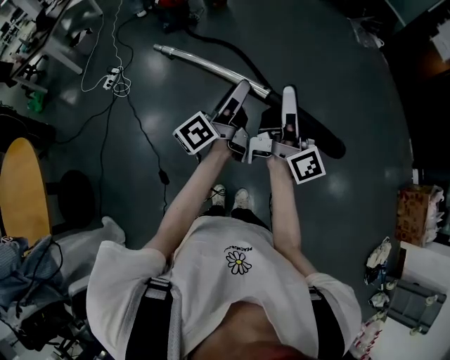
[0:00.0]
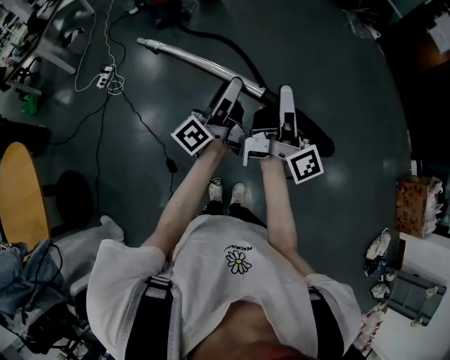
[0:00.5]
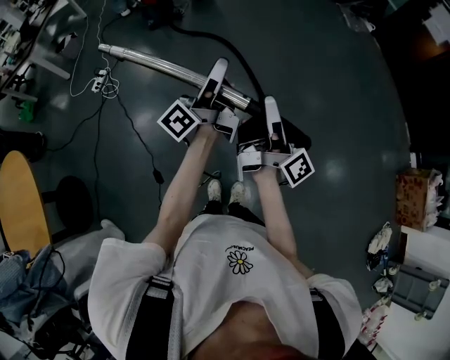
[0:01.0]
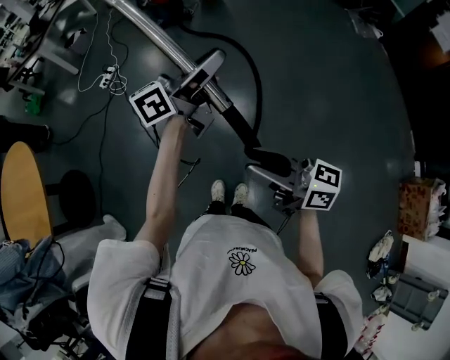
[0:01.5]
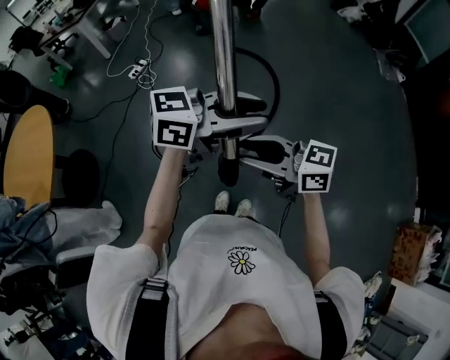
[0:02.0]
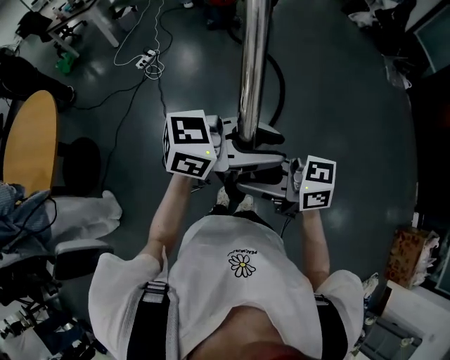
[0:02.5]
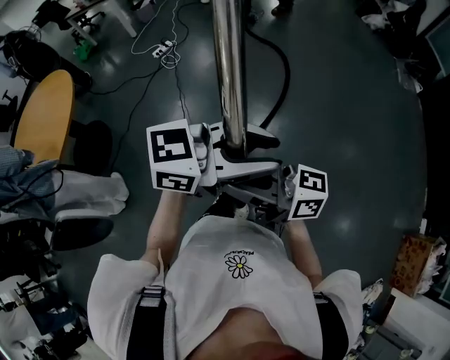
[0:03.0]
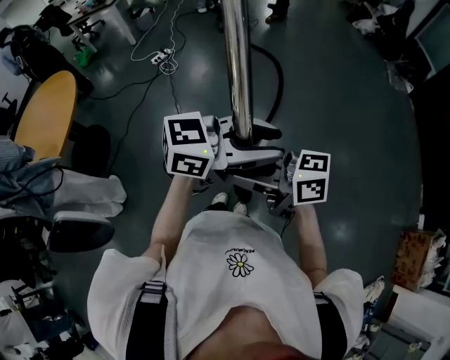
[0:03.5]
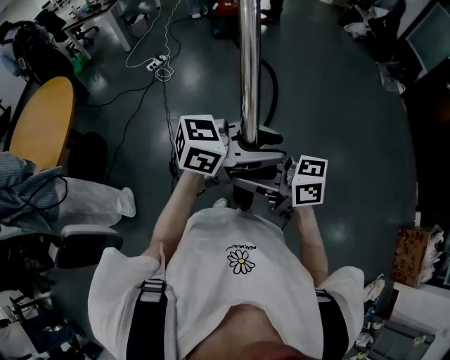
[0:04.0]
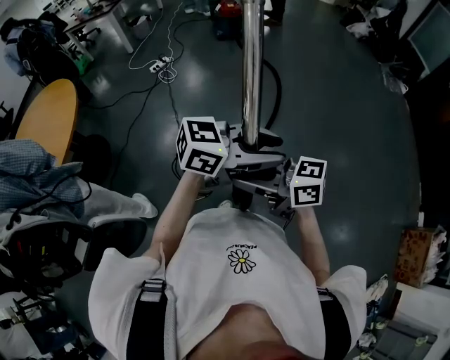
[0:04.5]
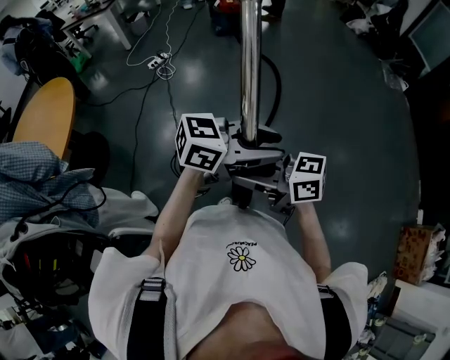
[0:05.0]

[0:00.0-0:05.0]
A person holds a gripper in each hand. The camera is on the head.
0:00.0 to 0:02.5: The right gripper moves about 30 cm, and rotates some 90 degrees. The left gripper moves some 20 cm, rotates approximately 70 degrees, and closes up.
0:02.5 to 0:05.0: The left gripper changes place by some 15 cm, while the right gripper shifts by about 15 cm.

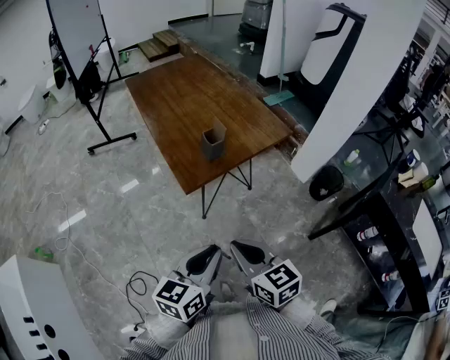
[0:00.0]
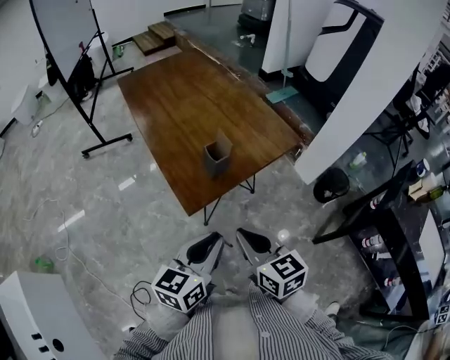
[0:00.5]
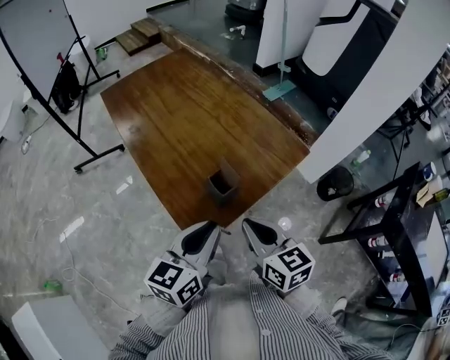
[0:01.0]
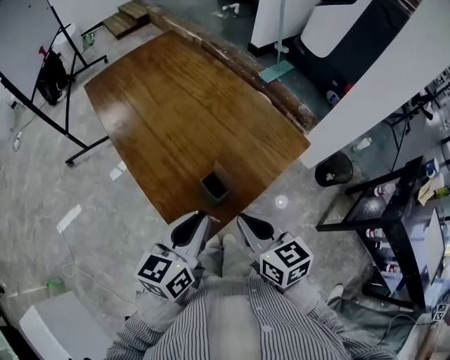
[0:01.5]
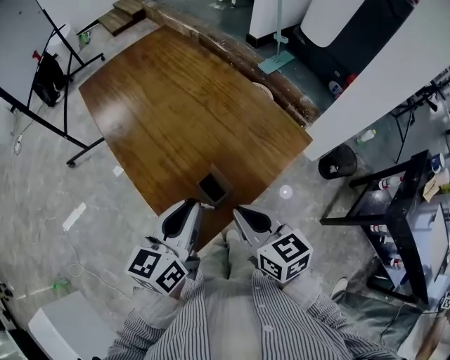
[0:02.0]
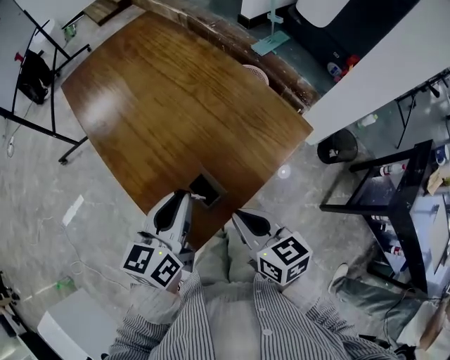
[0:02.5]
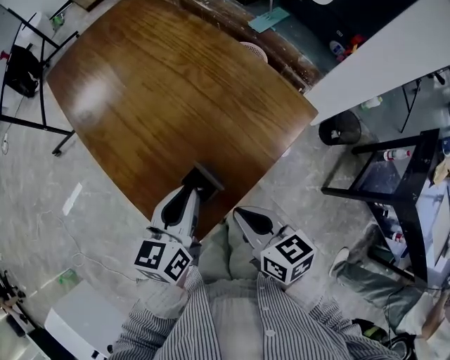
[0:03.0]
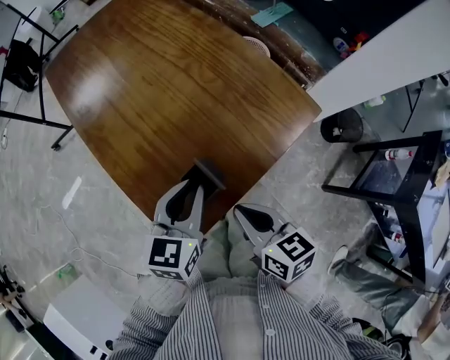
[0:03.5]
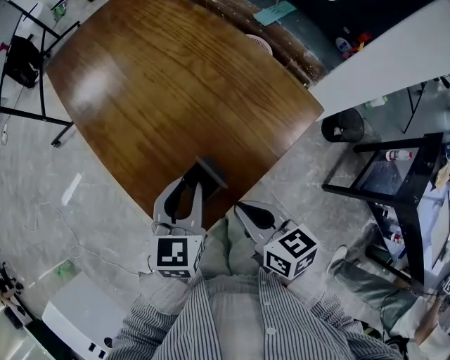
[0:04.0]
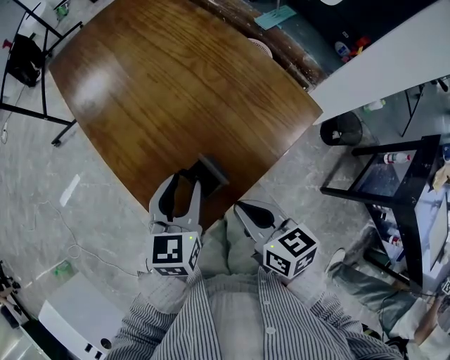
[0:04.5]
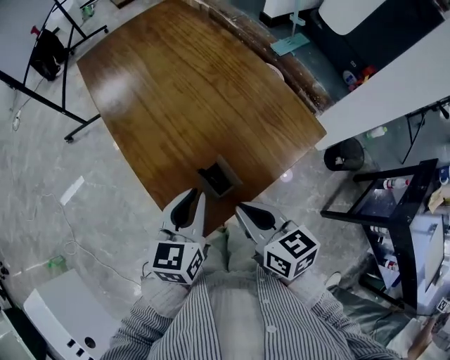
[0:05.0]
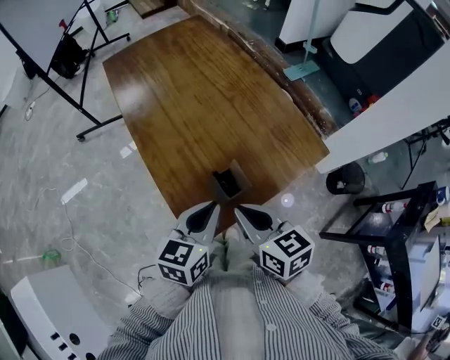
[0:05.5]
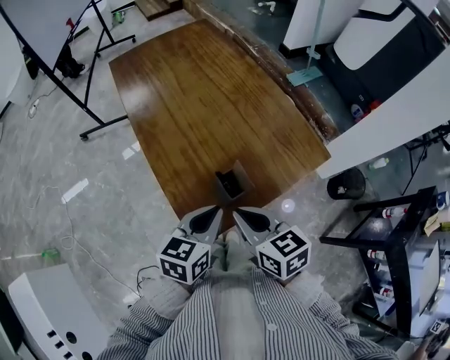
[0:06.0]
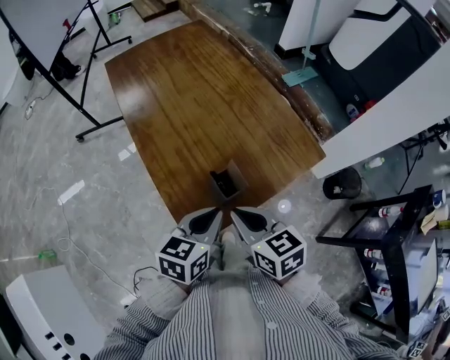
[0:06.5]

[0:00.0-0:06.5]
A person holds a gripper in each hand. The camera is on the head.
0:00.0 to 0:02.0: Both grippers travel together forward, about 40 cm.
0:02.0 to 0:04.5: The two grippers go approximately 10 cm downward. The left gripper swivels roughly 20 degrees, and opens.
0:04.5 to 0:06.5: The right gripper is displaced upward and to the left by about 10 cm. The left gripper heads backward, covering approximately 10 cm, and closes up.

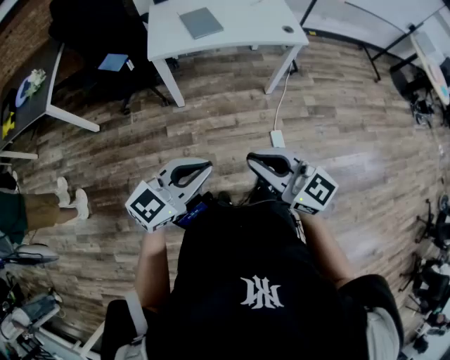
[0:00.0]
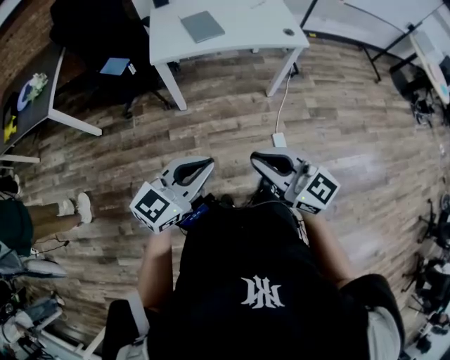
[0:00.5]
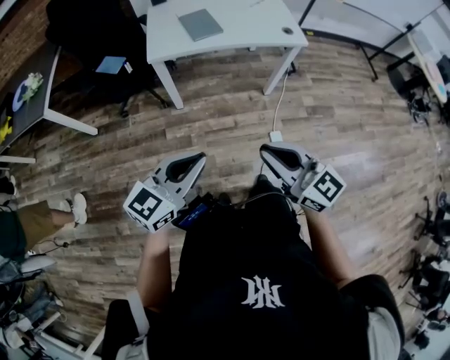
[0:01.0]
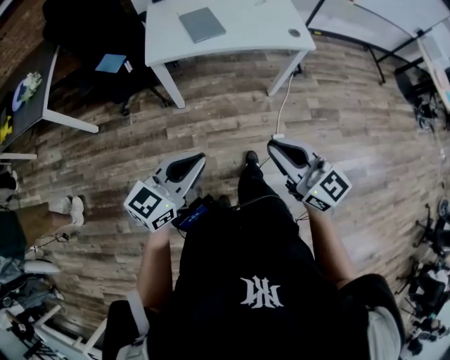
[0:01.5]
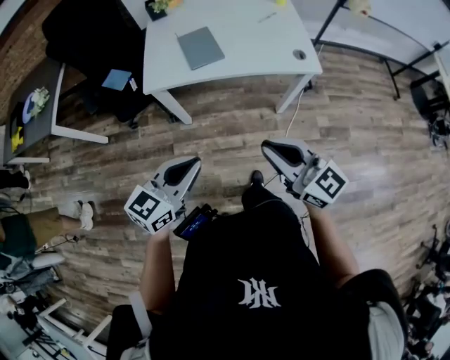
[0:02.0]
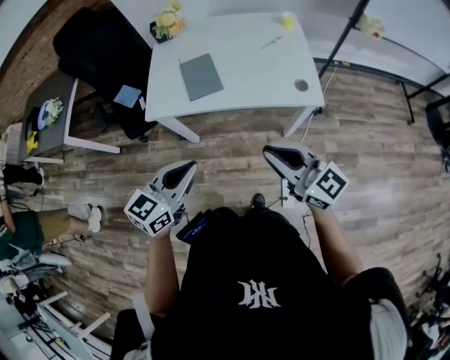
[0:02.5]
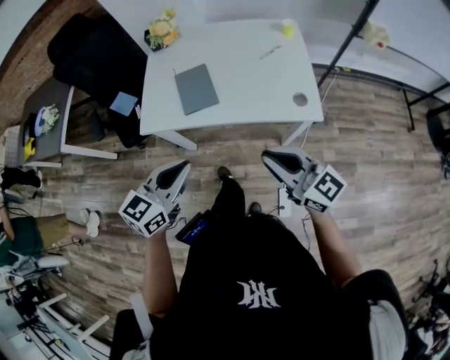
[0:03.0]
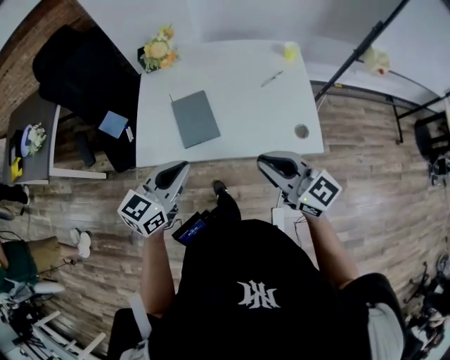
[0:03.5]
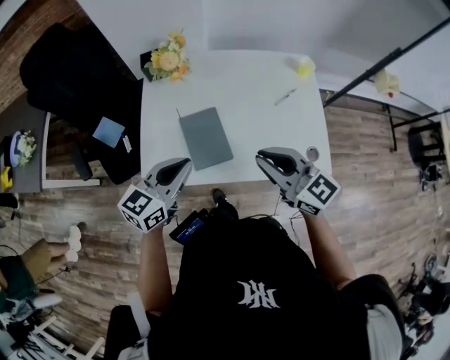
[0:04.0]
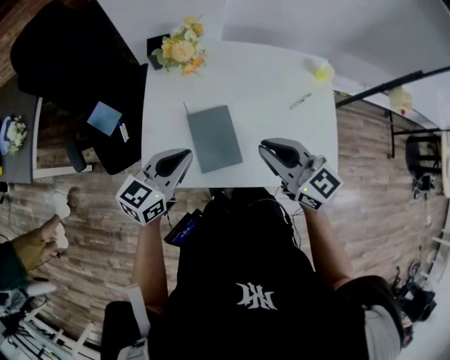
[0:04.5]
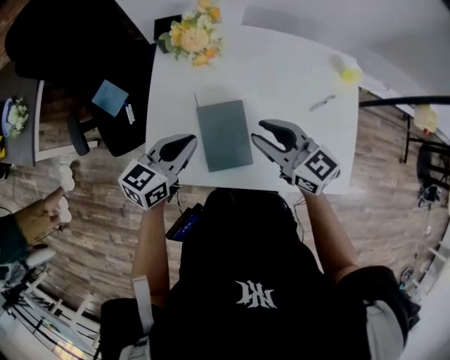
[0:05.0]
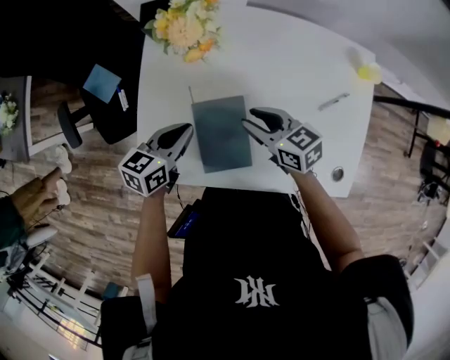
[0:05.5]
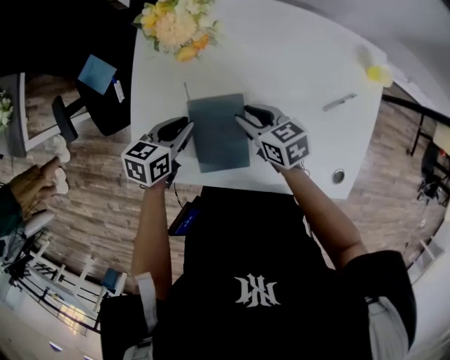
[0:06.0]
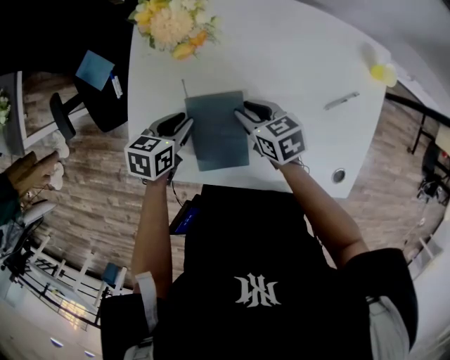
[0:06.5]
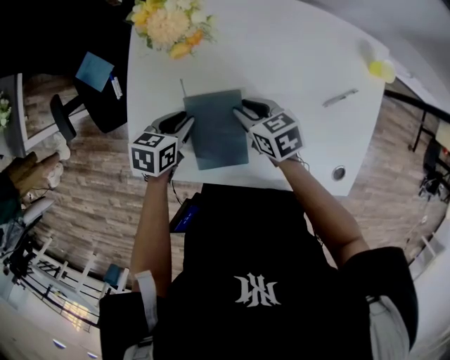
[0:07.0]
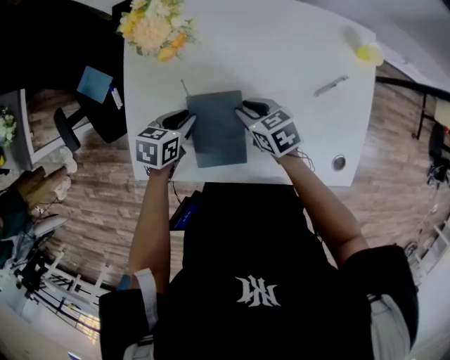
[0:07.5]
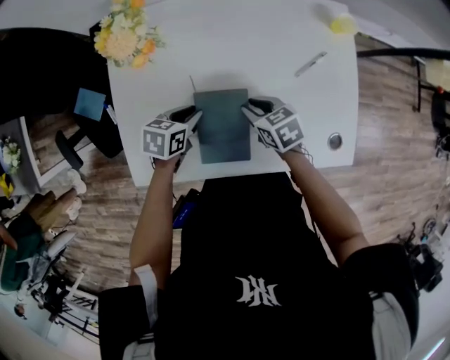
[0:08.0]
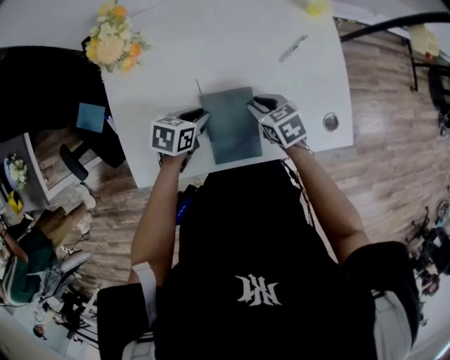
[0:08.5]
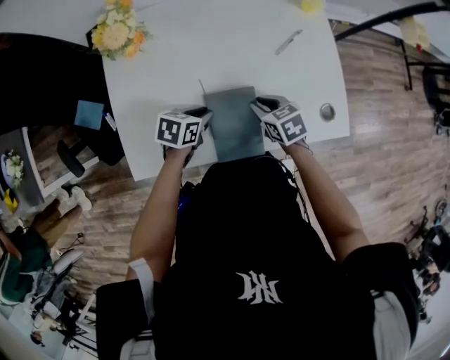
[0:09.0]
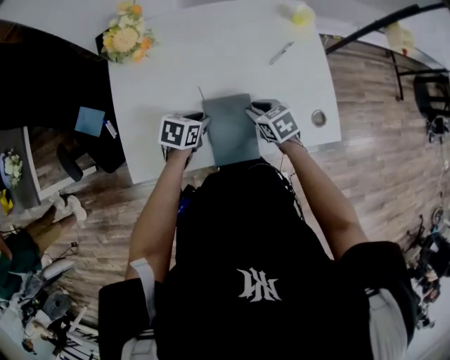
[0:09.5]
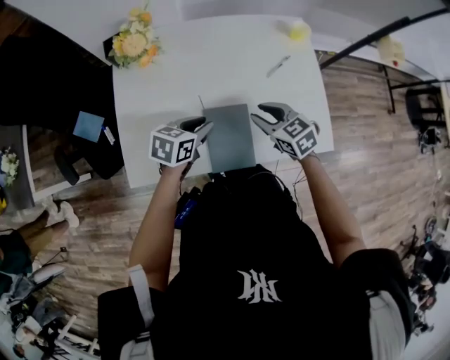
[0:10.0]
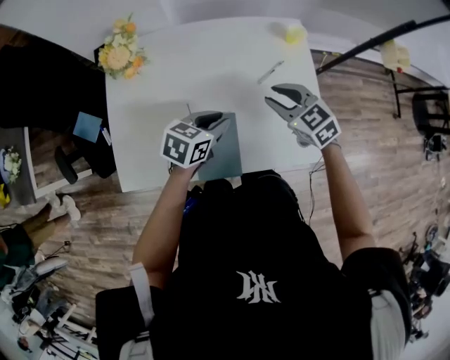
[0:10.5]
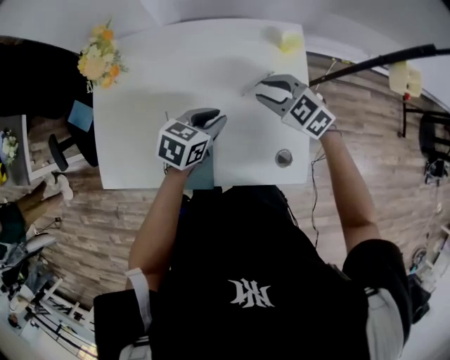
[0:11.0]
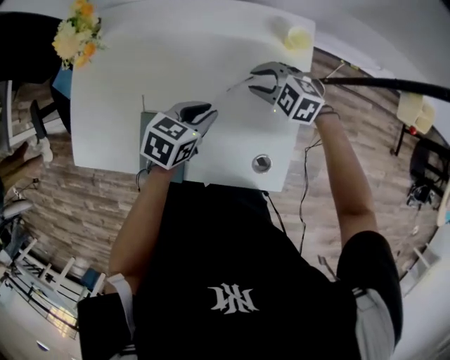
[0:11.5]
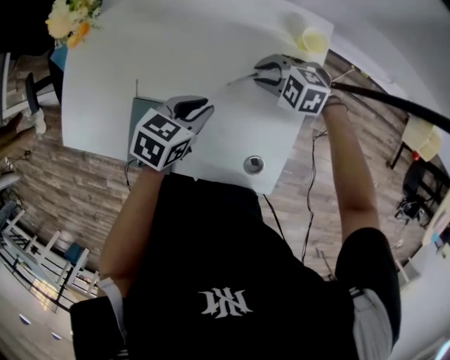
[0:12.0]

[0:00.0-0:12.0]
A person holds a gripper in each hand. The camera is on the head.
0:00.0 to 0:02.0: The right gripper goes some 25 cm forward and to the right; the left gripper moves forward, about 20 cm.
0:02.0 to 0:04.0: Both grippers travel together forward, approximately 40 cm.
0:04.0 to 0:06.0: Both grippers travel together downward and forward, approximately 30 cm. The left gripper turns by roughly 40 degrees, while the right gripper tilts its fingers about 30 degrees downward, and opens.
0:06.0 to 0:08.0: The two grippers go some 10 cm to the right.
0:08.0 to 0:10.0: Both grippers travel together upward and to the right, some 10 cm. The right gripper changes its angle by some 20 degrees.
0:10.0 to 0:12.0: The right gripper moves about 25 cm, and changes its angle by about 70 degrees; the left gripper moves some 25 cm.

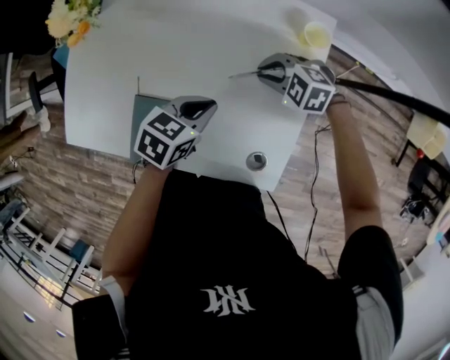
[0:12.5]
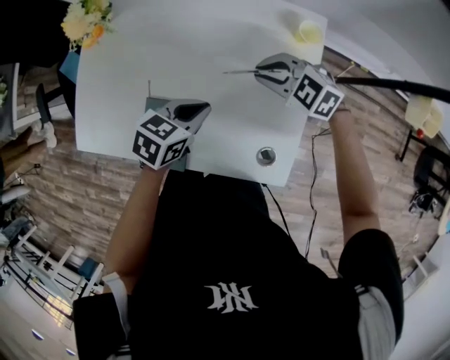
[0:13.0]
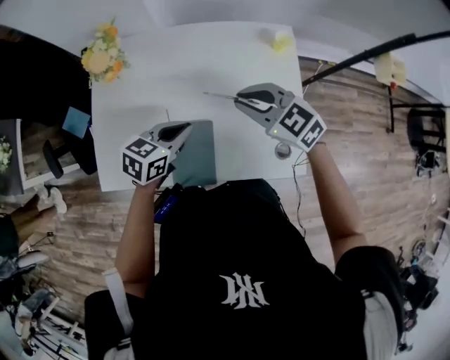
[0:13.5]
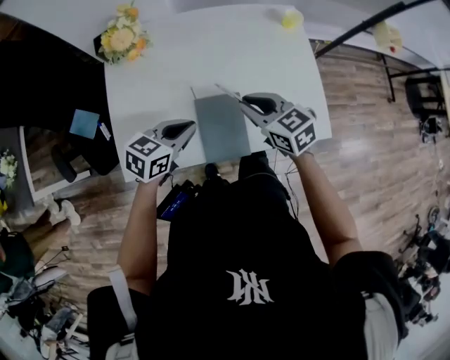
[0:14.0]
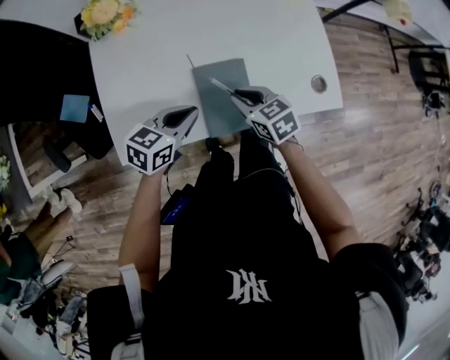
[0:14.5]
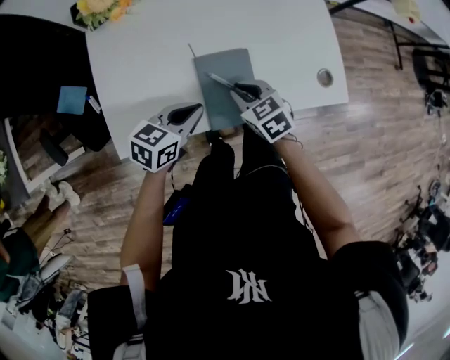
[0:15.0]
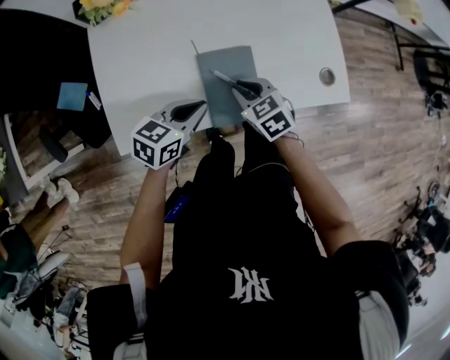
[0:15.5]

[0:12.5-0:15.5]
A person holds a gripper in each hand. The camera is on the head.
0:12.5 to 0:14.0: The right gripper moves about 30 cm, and rotates some 70 degrees. Meanwhile the left gripper ends up about 25 cm from where it was, and changes its angle by some 20 degrees.
0:14.0 to 0:15.5: The left gripper goes about 5 cm downward; the right gripper travels downward and backward by some 15 cm.
